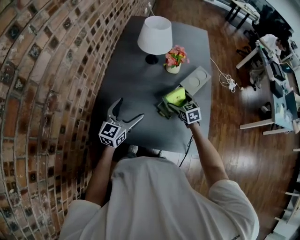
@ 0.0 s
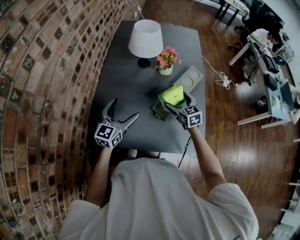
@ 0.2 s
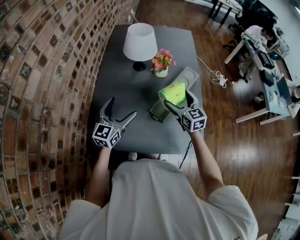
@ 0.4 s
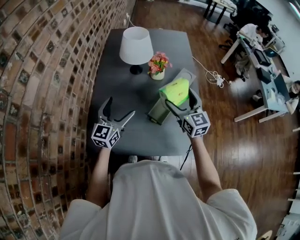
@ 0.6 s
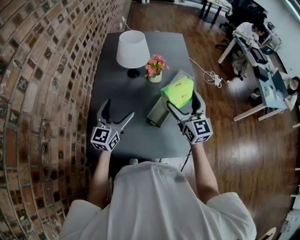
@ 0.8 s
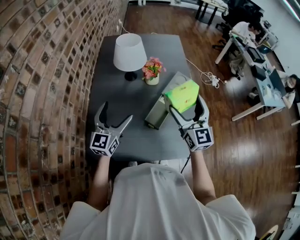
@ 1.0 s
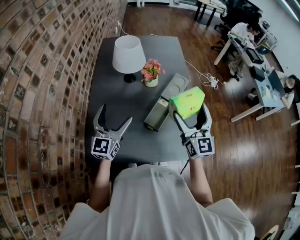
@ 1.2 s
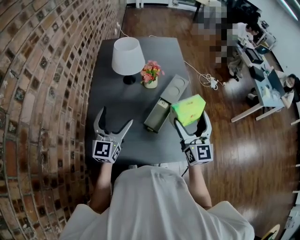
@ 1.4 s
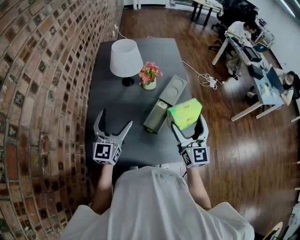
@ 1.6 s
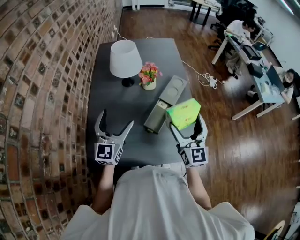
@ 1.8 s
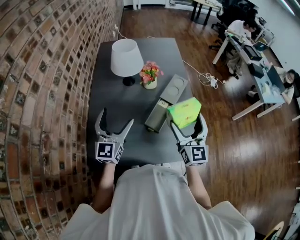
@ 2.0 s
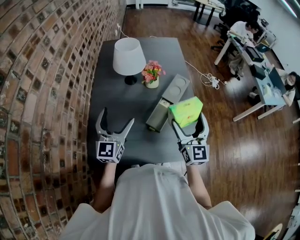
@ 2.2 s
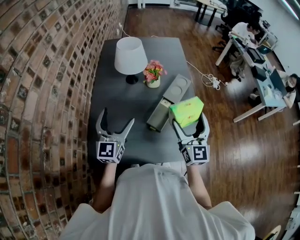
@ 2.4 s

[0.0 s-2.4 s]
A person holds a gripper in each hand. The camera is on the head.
0.0 to 1.2 s: The left gripper heads upward, covering approximately 10 cm, while the right gripper shifts approximately 30 cm upward, and tips its fingers upward by about 50 degrees.
1.2 to 2.4 s: The grippers stay close to where they were, moving slightly.

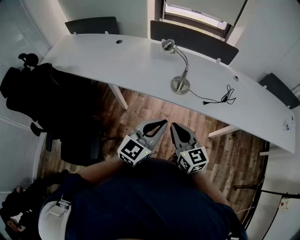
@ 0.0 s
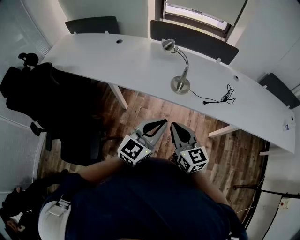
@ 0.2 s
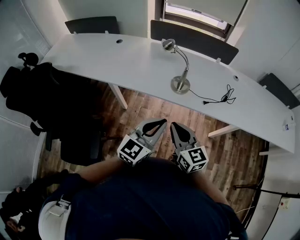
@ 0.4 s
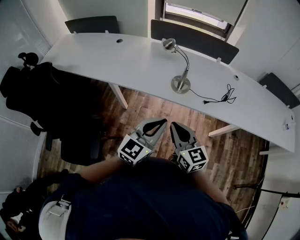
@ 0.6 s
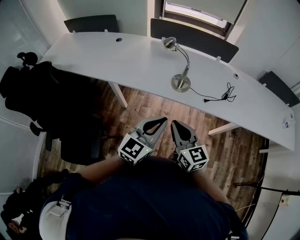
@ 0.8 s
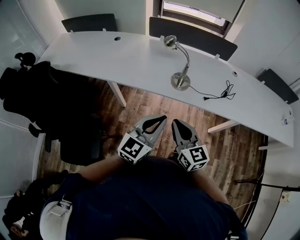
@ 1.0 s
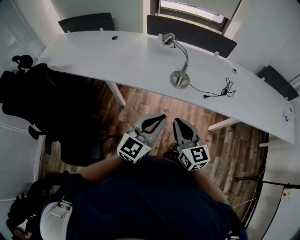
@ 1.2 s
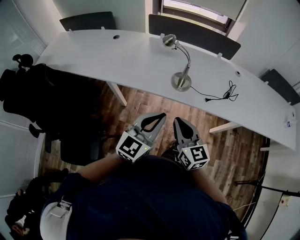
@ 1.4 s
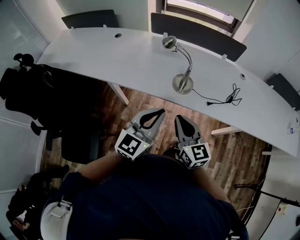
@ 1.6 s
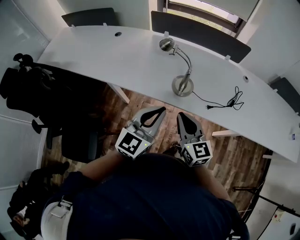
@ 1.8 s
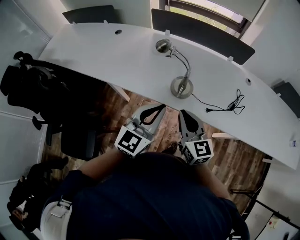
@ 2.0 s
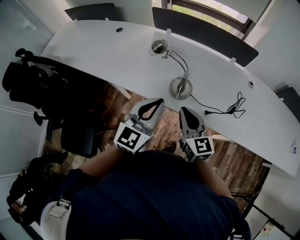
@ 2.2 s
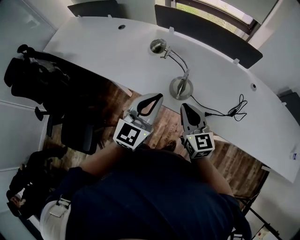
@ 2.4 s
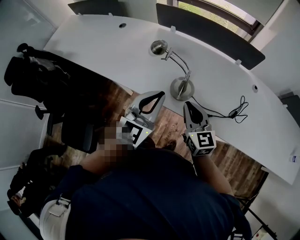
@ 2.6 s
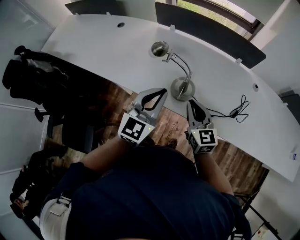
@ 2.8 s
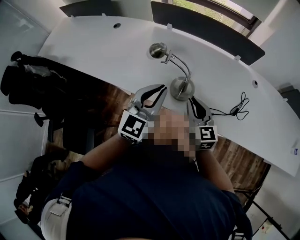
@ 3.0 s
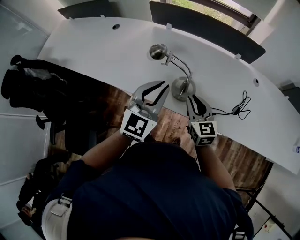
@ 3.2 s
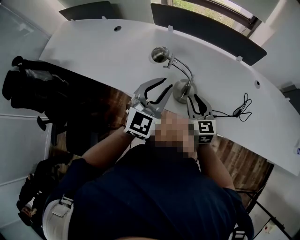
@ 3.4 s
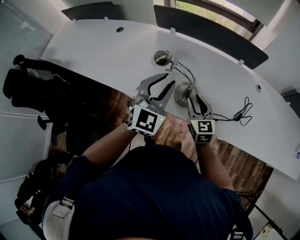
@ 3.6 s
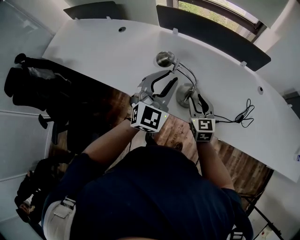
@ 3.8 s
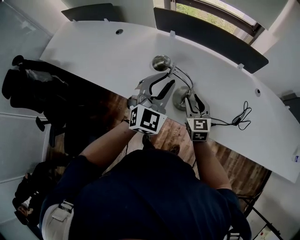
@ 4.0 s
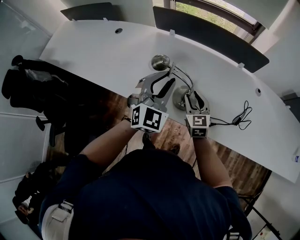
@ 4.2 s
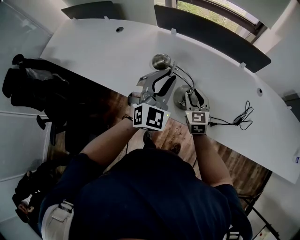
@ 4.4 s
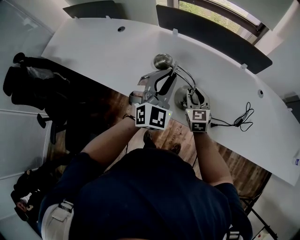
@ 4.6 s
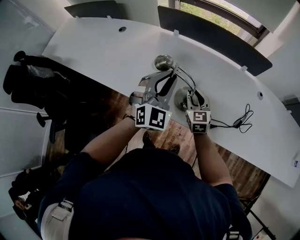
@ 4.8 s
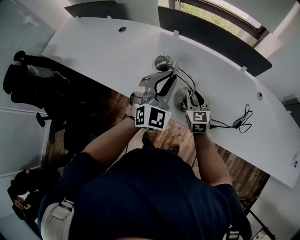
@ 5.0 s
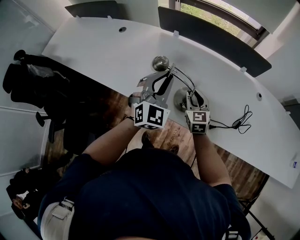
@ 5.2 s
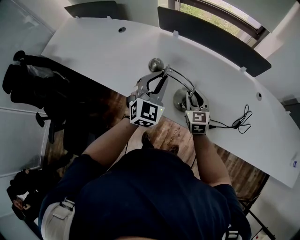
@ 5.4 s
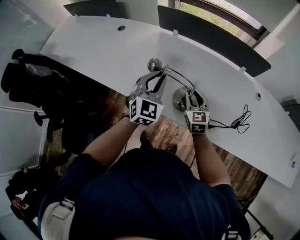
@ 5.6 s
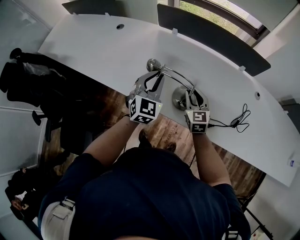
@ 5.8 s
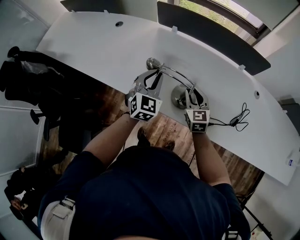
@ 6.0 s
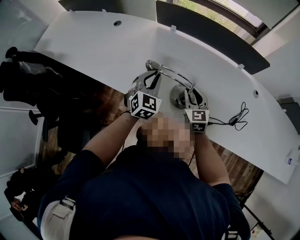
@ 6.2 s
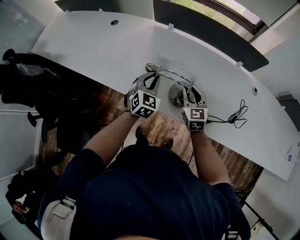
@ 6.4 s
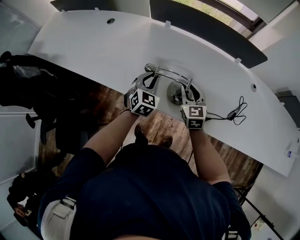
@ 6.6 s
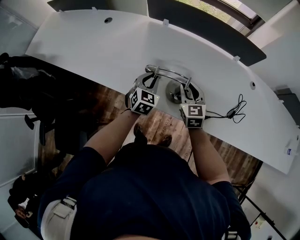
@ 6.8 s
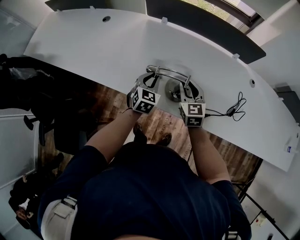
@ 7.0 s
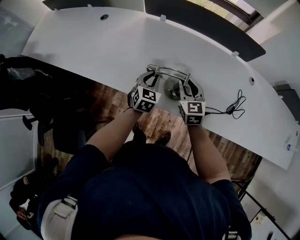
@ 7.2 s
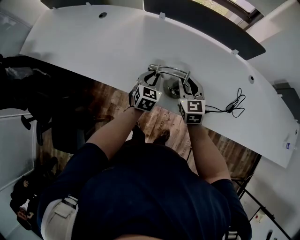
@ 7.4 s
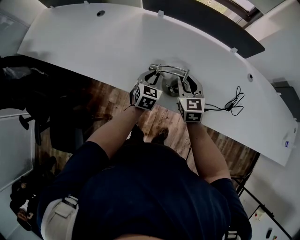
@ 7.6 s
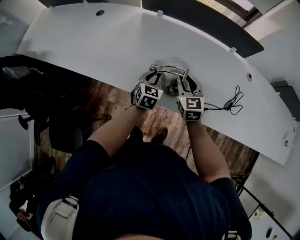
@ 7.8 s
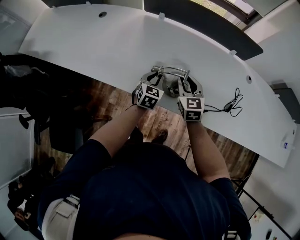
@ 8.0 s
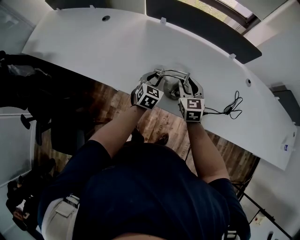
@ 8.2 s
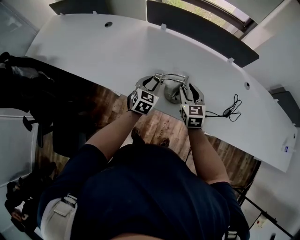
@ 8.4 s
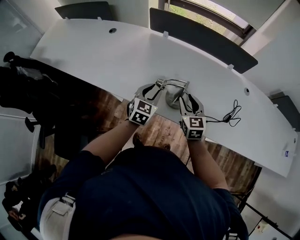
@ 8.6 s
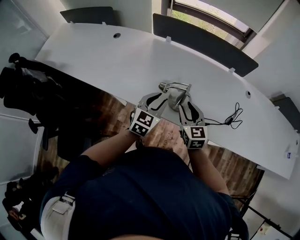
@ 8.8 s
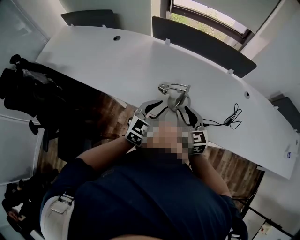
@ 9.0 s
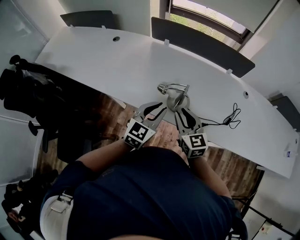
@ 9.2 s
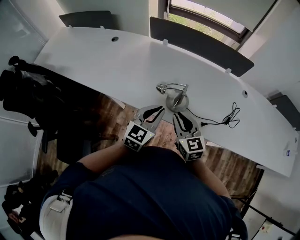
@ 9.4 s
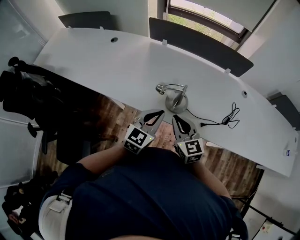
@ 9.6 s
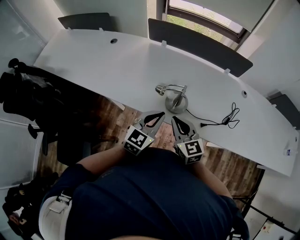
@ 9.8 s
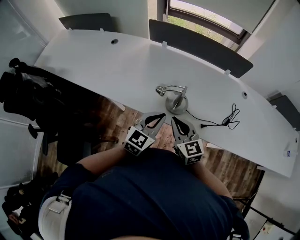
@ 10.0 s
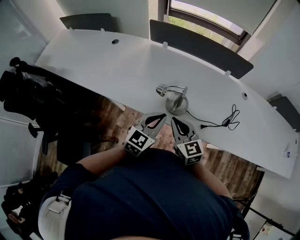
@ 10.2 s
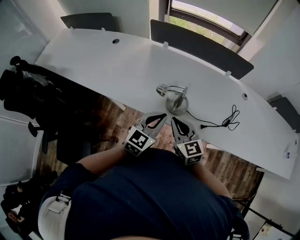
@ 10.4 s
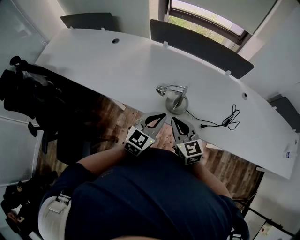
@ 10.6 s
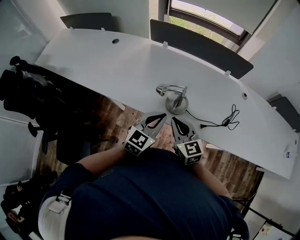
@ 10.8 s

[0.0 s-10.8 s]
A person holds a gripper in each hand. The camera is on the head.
0.0 to 1.6 s: Both grippers move forward, approximately 10 cm.
1.6 to 3.0 s: The right gripper is displaced forward and to the right by approximately 20 cm. Meanwhile the left gripper is displaced forward by some 20 cm.
3.0 to 4.6 s: The right gripper moves forward and downward, some 15 cm, while the left gripper goes some 10 cm forward, and turns by roughly 30 degrees.
4.6 to 6.2 s: The left gripper shifts approximately 15 cm downward and to the left, and turns by approximately 20 degrees.
6.2 to 7.8 s: The left gripper heads downward, covering roughly 15 cm, and turns by some 20 degrees.
7.8 to 9.2 s: The left gripper goes about 25 cm upward and backward, and swivels approximately 20 degrees; the right gripper travels backward and upward by some 15 cm.
9.2 to 10.8 s: The right gripper closes its fingers.

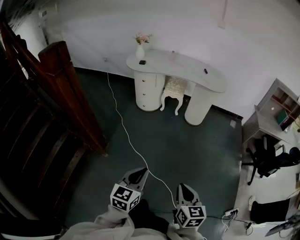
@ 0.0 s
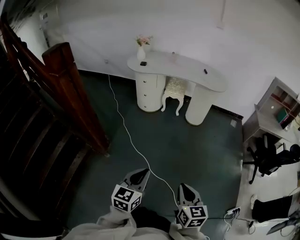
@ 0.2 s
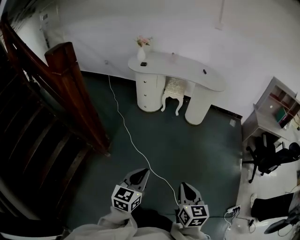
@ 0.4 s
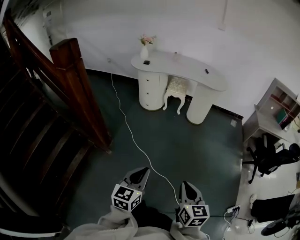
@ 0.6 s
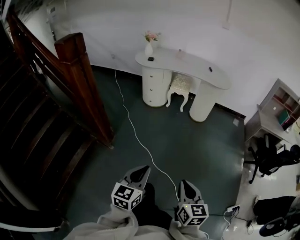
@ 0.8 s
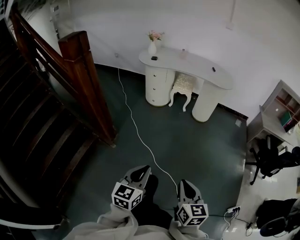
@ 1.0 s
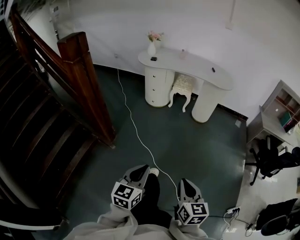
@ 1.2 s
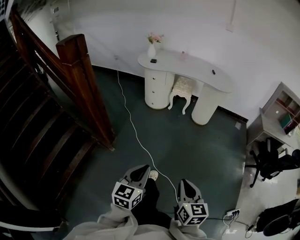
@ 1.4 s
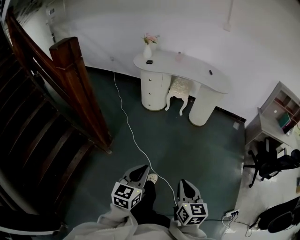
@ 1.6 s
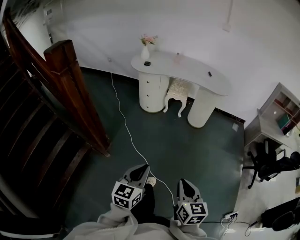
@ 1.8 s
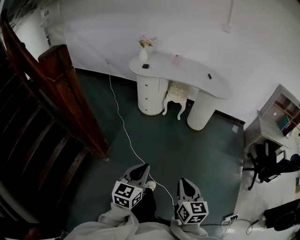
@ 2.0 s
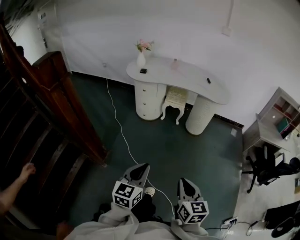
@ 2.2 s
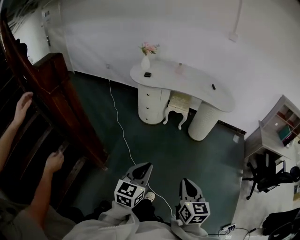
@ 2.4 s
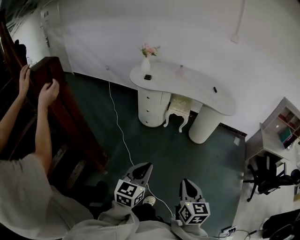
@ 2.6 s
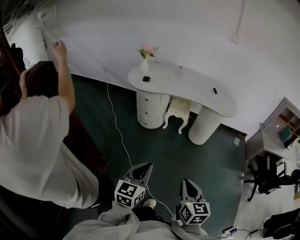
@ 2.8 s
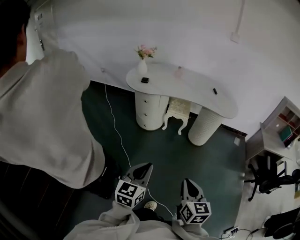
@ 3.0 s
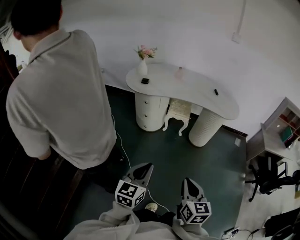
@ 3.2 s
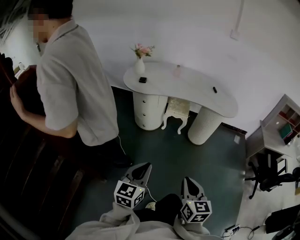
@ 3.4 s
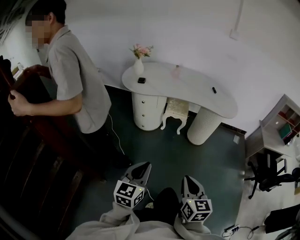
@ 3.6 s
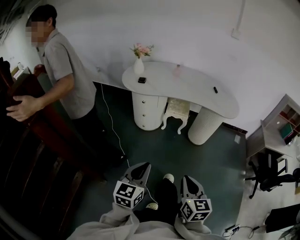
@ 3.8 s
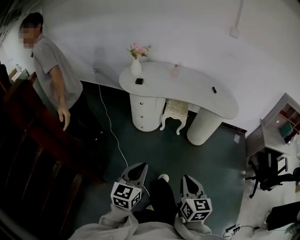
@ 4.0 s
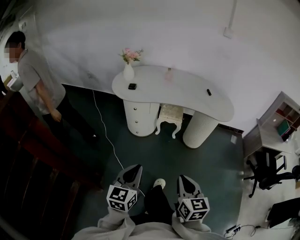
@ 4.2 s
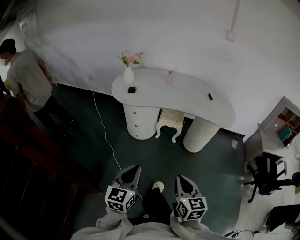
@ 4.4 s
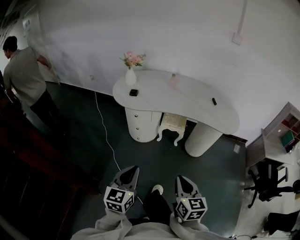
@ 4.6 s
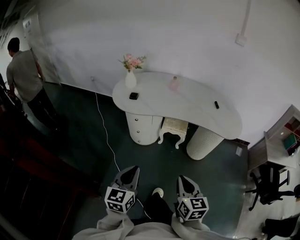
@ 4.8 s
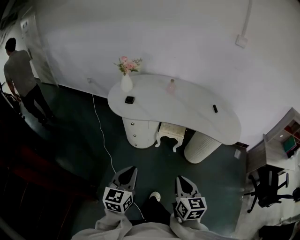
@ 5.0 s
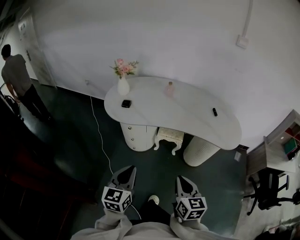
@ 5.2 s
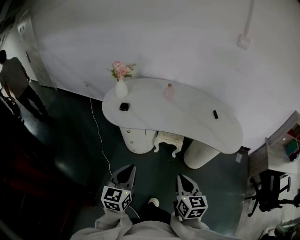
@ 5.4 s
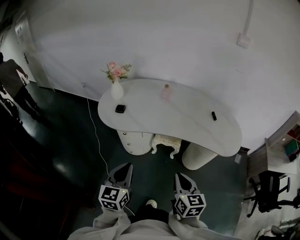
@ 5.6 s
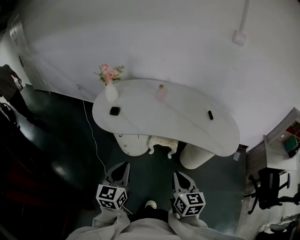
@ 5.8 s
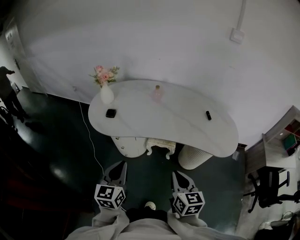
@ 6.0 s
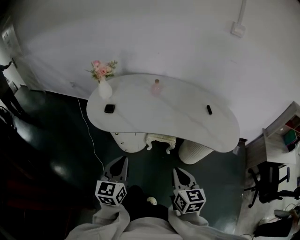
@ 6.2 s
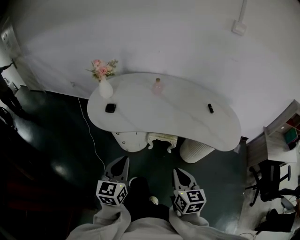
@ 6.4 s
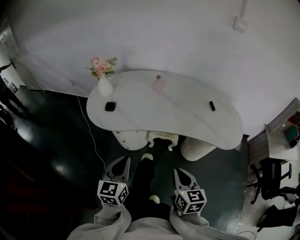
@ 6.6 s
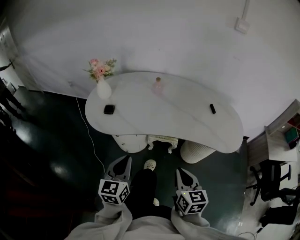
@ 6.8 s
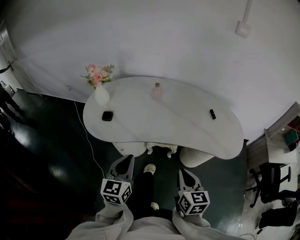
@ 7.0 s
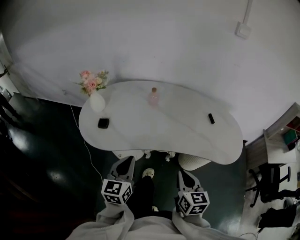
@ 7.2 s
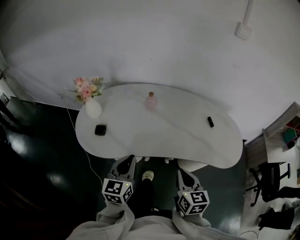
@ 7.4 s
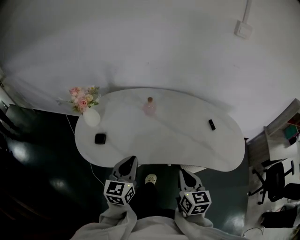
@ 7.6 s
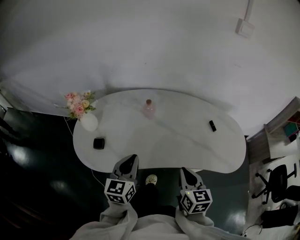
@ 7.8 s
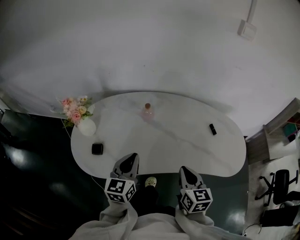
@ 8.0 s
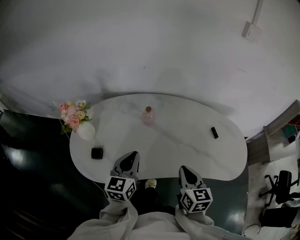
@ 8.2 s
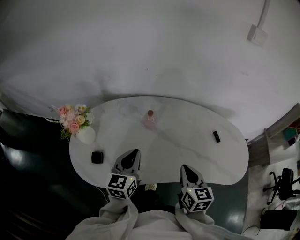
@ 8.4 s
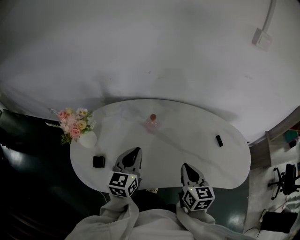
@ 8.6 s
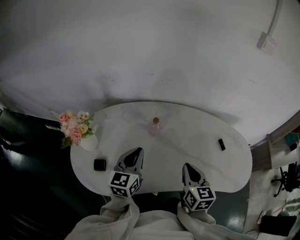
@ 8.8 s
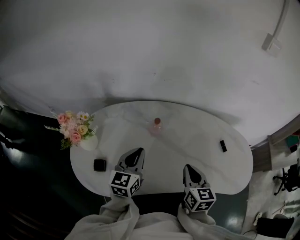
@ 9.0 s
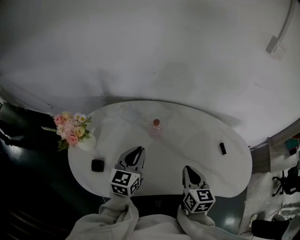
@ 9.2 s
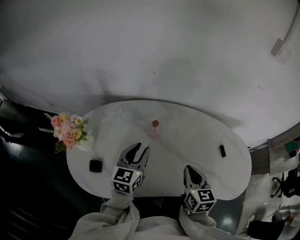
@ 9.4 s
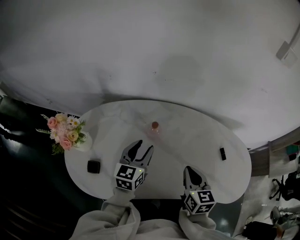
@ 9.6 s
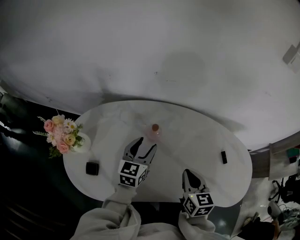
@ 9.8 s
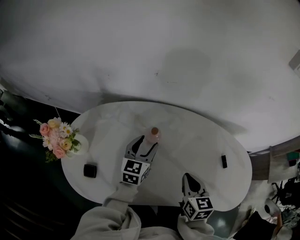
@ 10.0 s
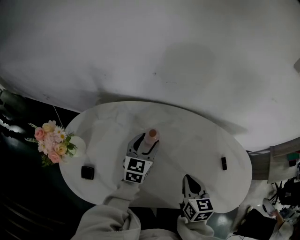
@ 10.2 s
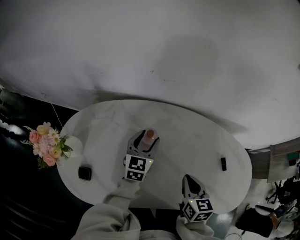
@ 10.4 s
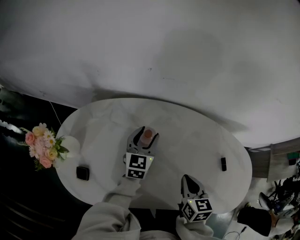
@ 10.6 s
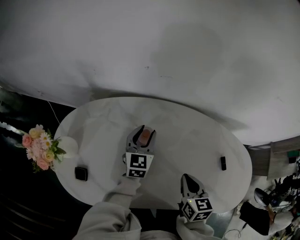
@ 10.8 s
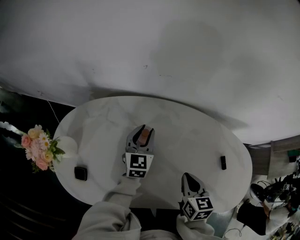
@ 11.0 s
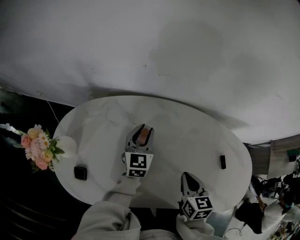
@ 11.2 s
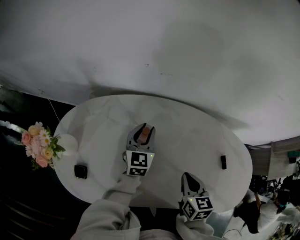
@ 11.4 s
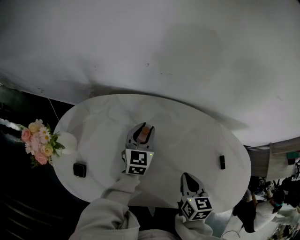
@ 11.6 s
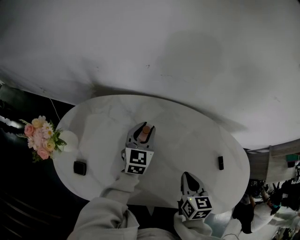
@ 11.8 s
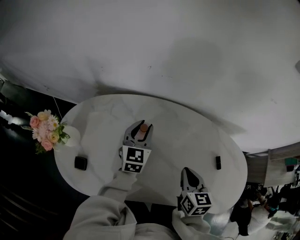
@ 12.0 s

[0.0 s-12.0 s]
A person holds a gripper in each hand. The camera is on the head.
0.0 to 1.6 s: The left gripper moves roughly 10 cm backward and comes back. Meanwhile the right gripper moves some 10 cm backward and comes back.
1.6 to 3.0 s: Both grippers move forward, approximately 30 cm.
3.0 to 4.4 s: The two grippers go about 15 cm forward.
4.4 to 6.0 s: The two grippers go roughly 30 cm forward.
6.0 to 7.6 s: Both grippers travel together forward, about 20 cm.
7.6 to 9.0 s: The two grippers go some 20 cm forward.
9.0 to 10.4 s: The left gripper is displaced forward and downward by some 20 cm, and opens up. Meanwhile the right gripper travels forward and downward by about 10 cm.
10.4 to 12.0 s: The left gripper closes its fingers.
